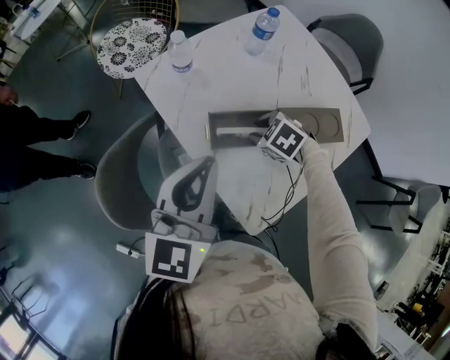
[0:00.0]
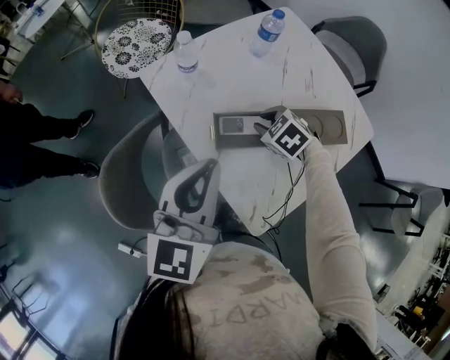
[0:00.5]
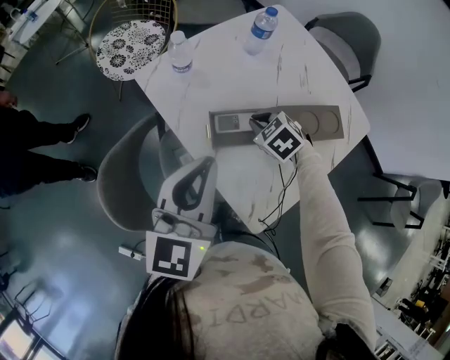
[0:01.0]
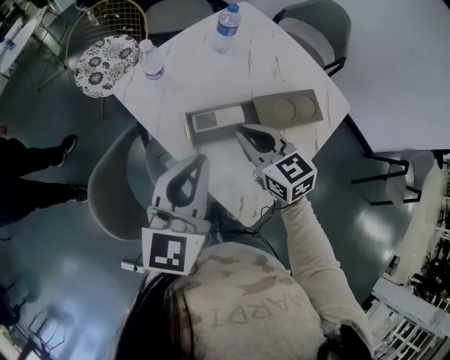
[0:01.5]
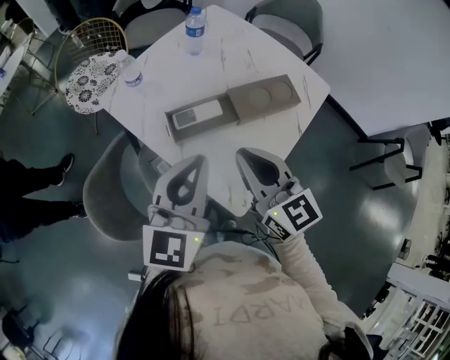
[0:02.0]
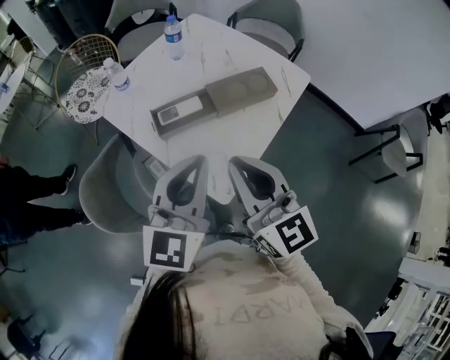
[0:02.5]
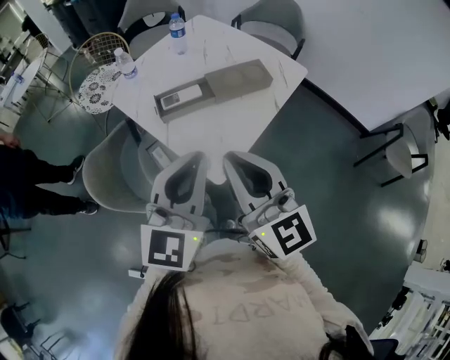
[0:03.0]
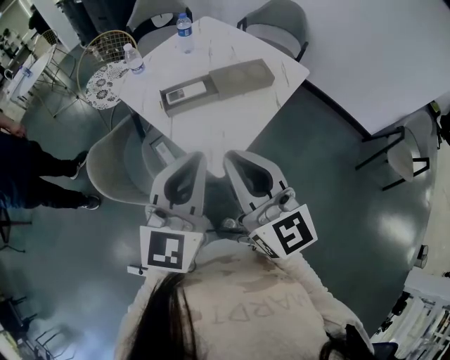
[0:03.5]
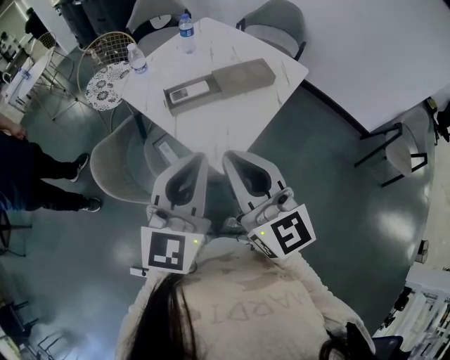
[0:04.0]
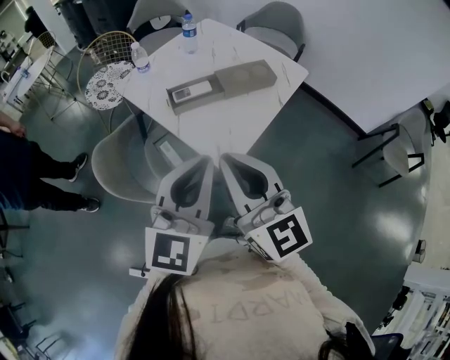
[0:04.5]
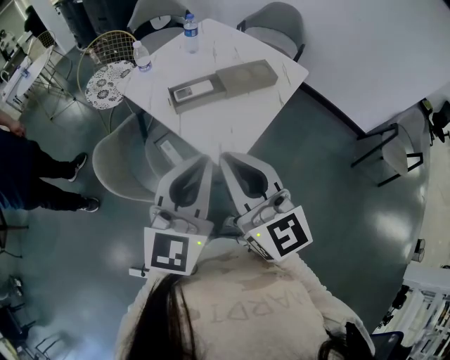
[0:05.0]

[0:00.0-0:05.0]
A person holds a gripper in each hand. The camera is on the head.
0:00.0 to 0:02.5: The right gripper moves upward, roughly 30 cm, angles its fingers upward, by about 70 degrees, and closes up; the left gripper ends up some 20 cm from where it was.
0:02.5 to 0:05.0: The left gripper shifts roughly 15 cm backward; the right gripper goes roughly 15 cm backward and upward.

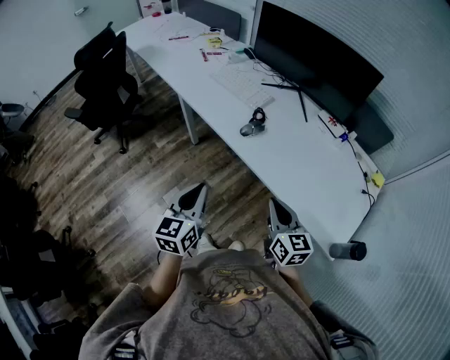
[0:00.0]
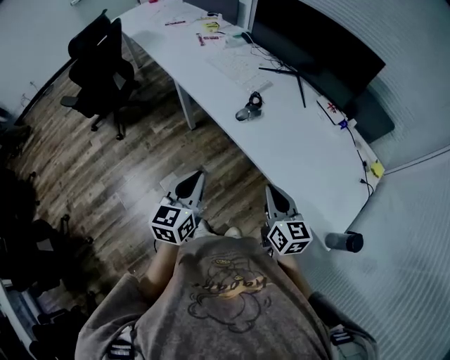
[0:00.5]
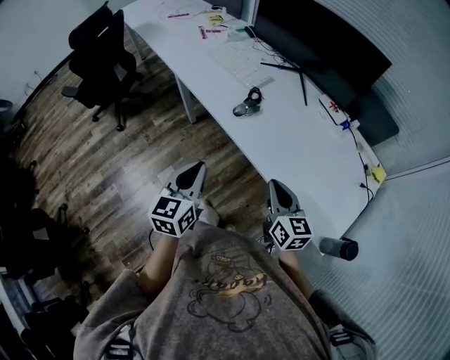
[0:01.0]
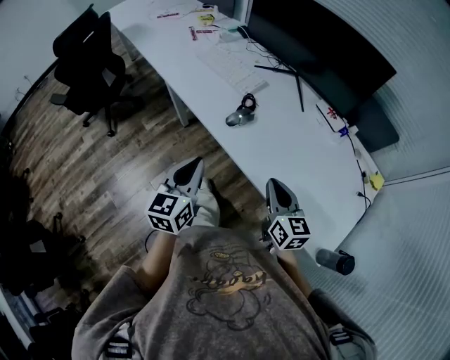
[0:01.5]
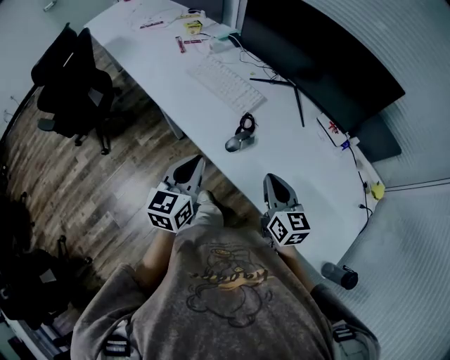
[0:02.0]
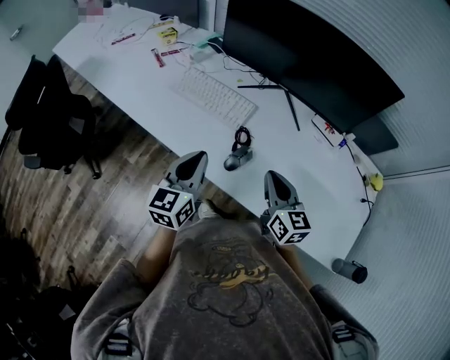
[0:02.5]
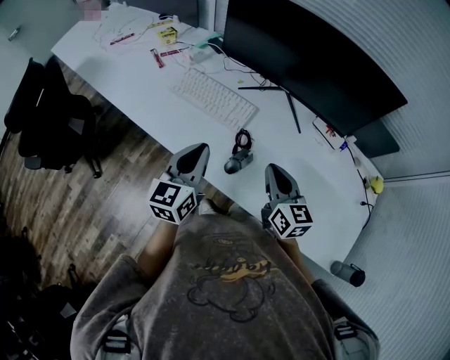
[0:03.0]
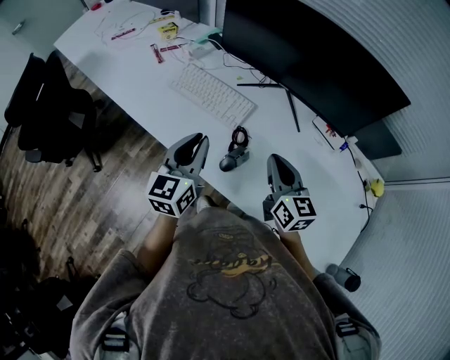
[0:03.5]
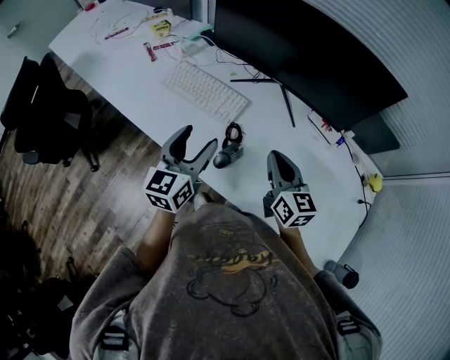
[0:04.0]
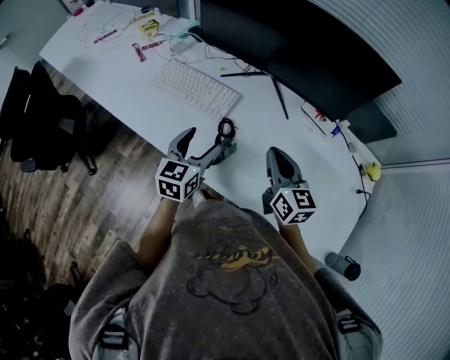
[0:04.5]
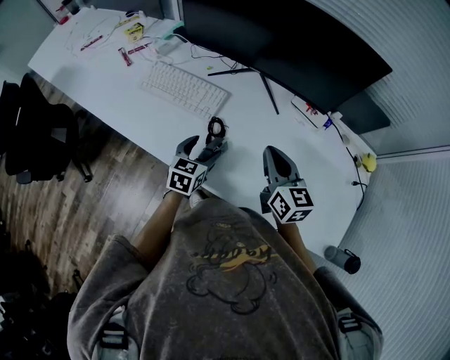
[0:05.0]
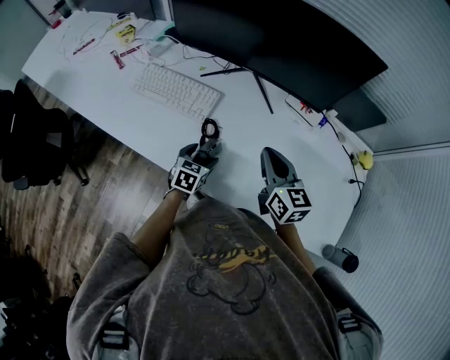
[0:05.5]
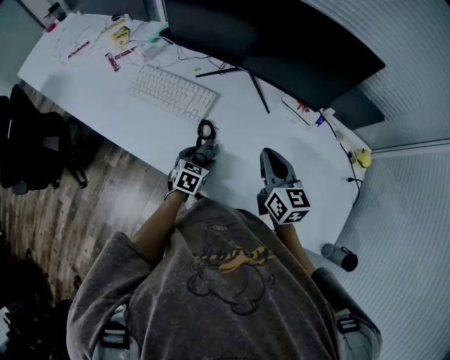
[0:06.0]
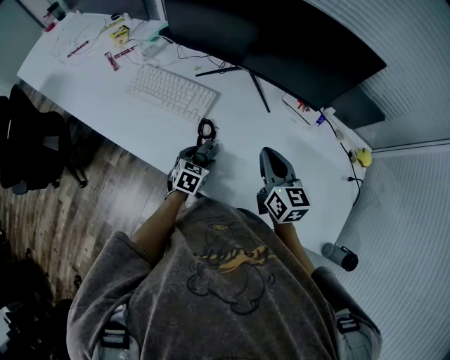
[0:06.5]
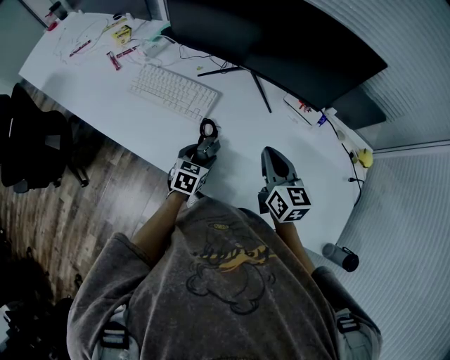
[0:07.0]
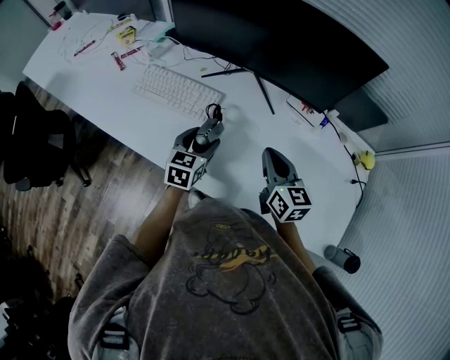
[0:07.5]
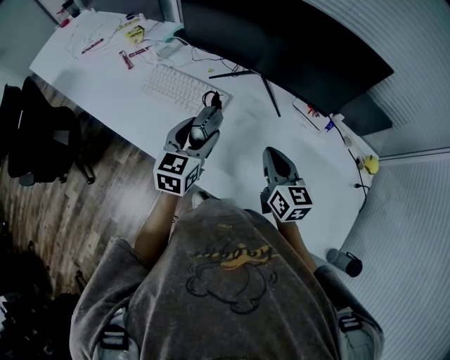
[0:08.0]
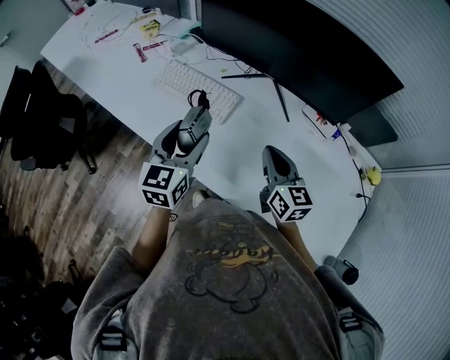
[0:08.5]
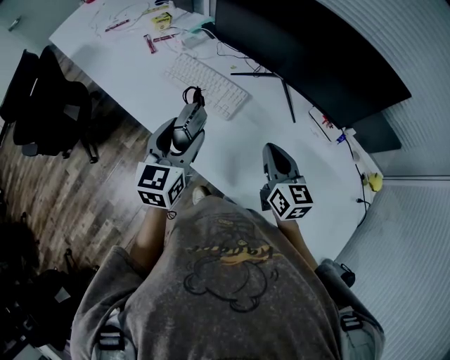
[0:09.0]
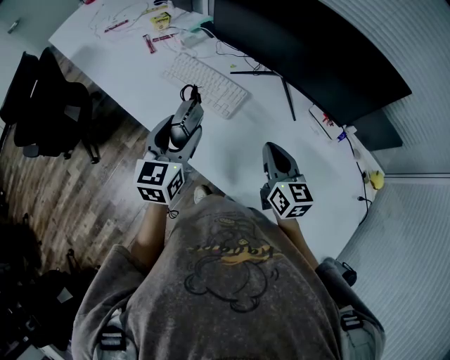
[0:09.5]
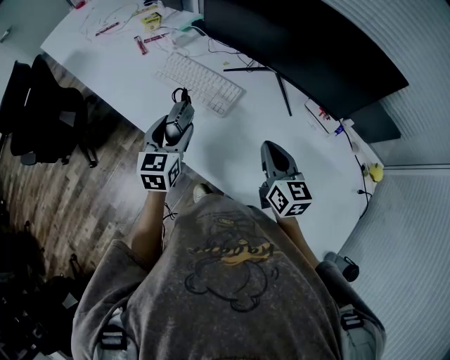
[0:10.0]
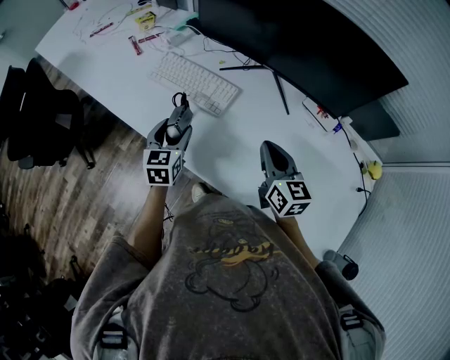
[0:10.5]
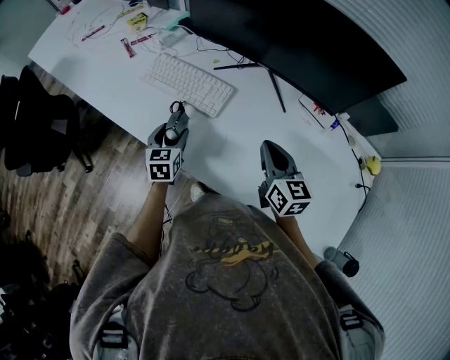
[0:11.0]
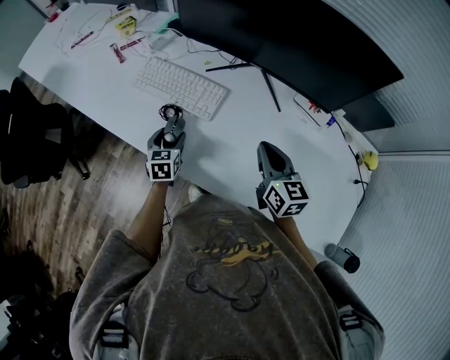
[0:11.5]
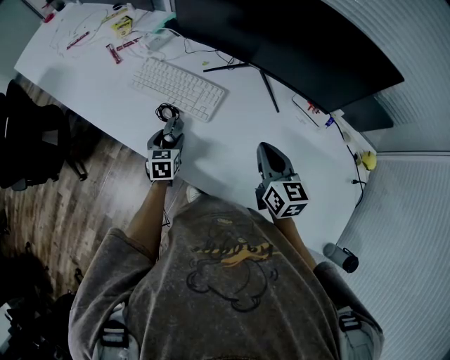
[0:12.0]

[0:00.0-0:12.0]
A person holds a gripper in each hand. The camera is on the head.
0:00.0 to 0:02.0: The grippers both shift forward by some 20 cm.
0:02.0 to 0:04.0: Both grippers move forward, some 15 cm. The left gripper opens its fingers.
0:04.0 to 0:06.0: The left gripper moves downward, roughly 25 cm, and points its fingers approximately 40 degrees further downward. Meanwhile the right gripper goes roughly 5 cm to the right.
0:06.0 to 0:08.0: The left gripper travels upward by approximately 20 cm, and turns by some 30 degrees.
0:08.0 to 0:10.0: The left gripper moves to the left, approximately 10 cm.
0:10.0 to 0:12.0: The left gripper travels downward by roughly 20 cm, and changes its angle by approximately 20 degrees.

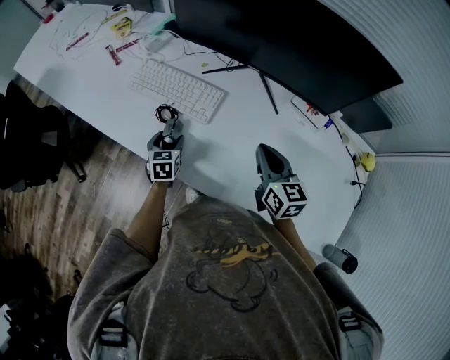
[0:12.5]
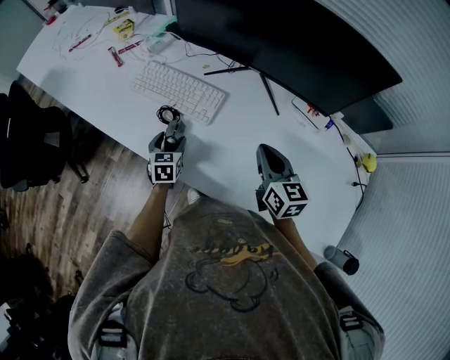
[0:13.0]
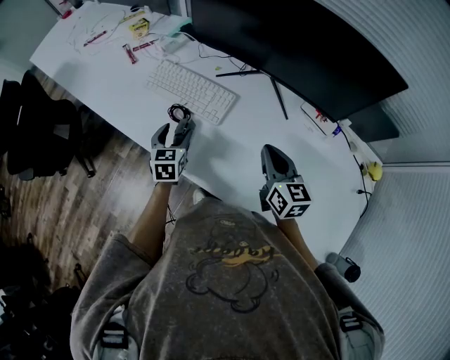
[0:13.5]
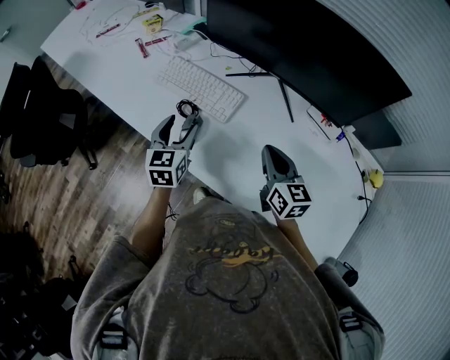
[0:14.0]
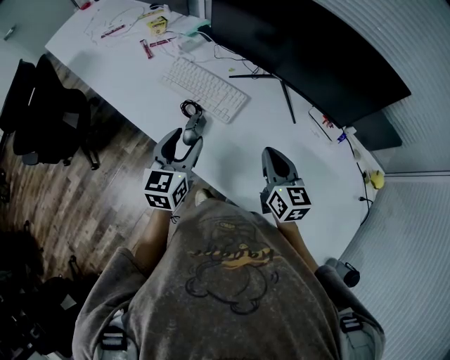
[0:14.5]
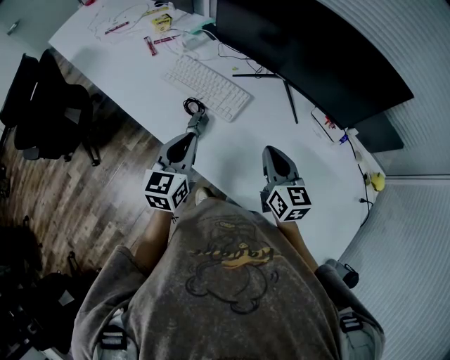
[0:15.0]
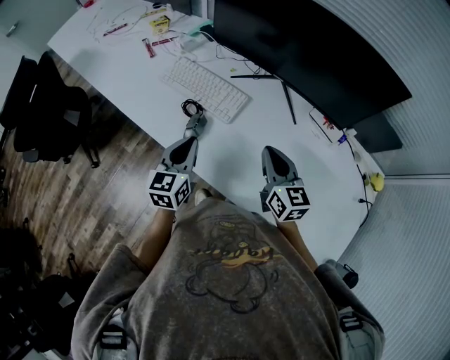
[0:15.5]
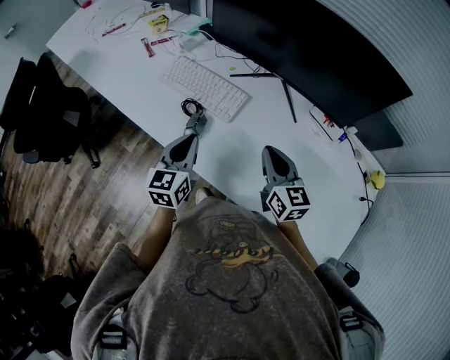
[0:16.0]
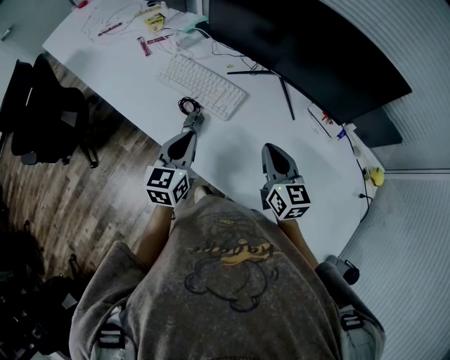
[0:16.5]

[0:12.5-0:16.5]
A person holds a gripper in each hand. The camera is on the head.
0:12.5 to 0:14.5: The left gripper goes roughly 20 cm upward, and swivels roughly 30 degrees.
0:14.5 to 0:16.5: The left gripper closes up.

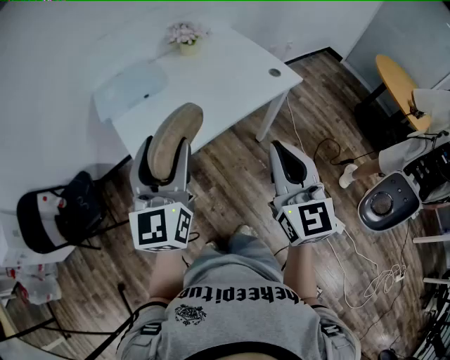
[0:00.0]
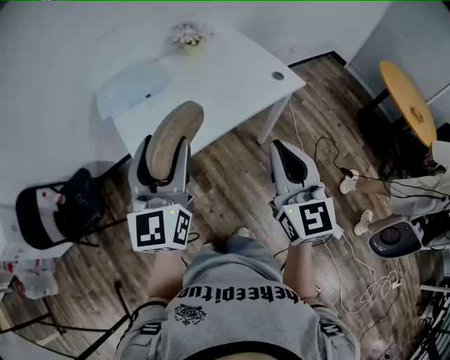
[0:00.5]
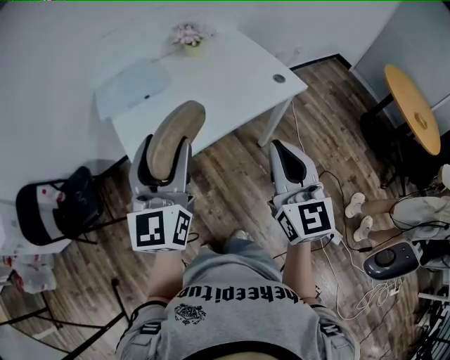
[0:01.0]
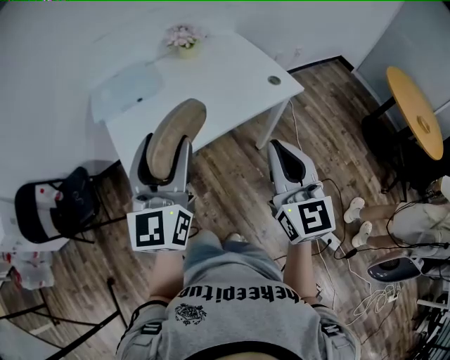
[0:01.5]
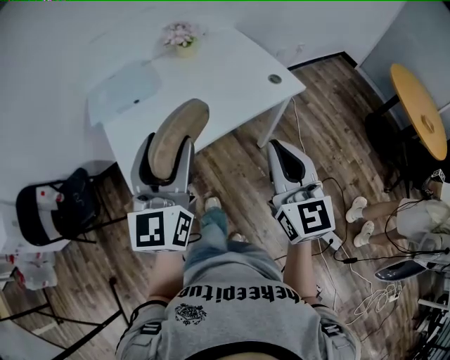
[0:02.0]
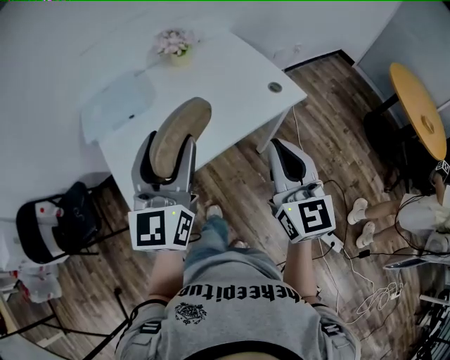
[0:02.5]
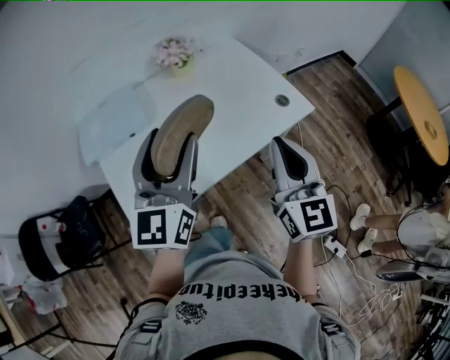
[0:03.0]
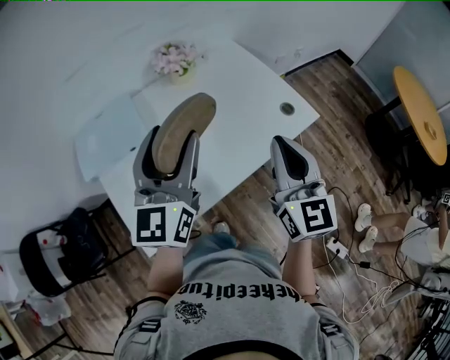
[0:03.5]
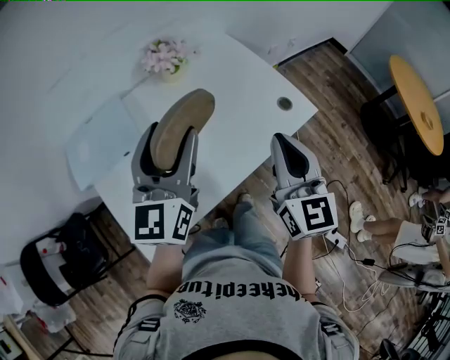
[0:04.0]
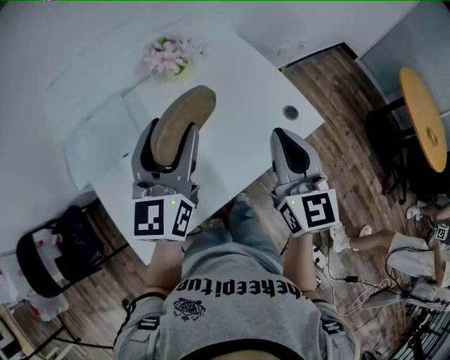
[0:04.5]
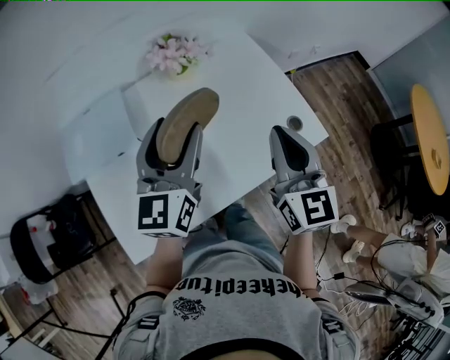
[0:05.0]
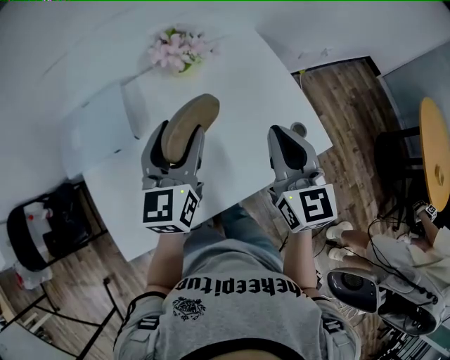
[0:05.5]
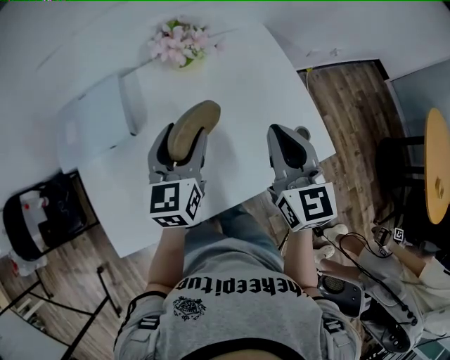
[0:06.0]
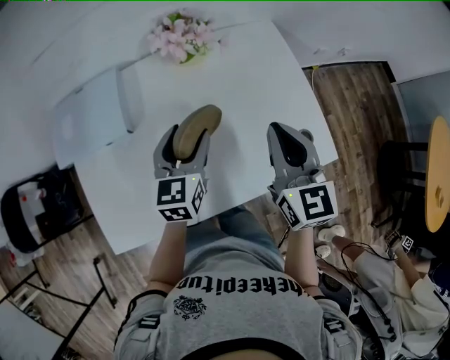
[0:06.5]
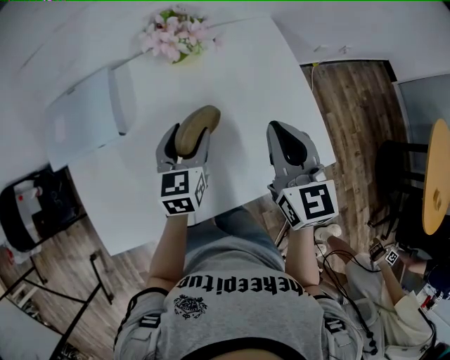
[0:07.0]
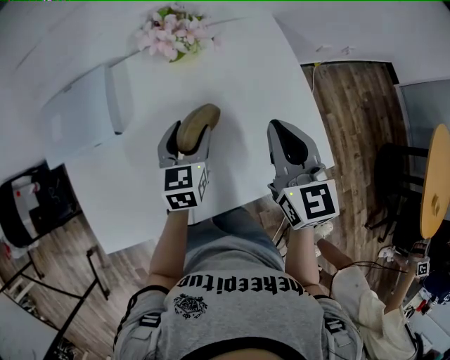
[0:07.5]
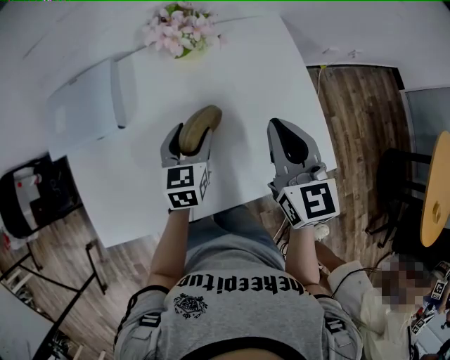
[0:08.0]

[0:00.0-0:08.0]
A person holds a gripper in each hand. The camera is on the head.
0:00.0 to 0:02.0: The left gripper heads to the right, covering approximately 10 cm. The right gripper heads to the right and forward, covering some 10 cm.
0:02.0 to 0:04.0: Both grippers travel together forward, some 25 cm.
0:04.0 to 0:06.0: The right gripper travels forward by some 15 cm, and swivels approximately 20 degrees. The left gripper travels downward and forward by about 20 cm, and swivels approximately 20 degrees.
0:06.0 to 0:08.0: The right gripper shifts approximately 5 cm forward, while the left gripper shifts approximately 10 cm downward.
